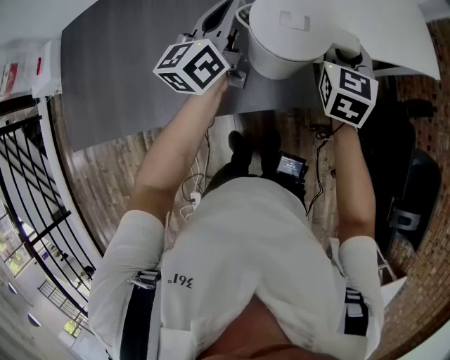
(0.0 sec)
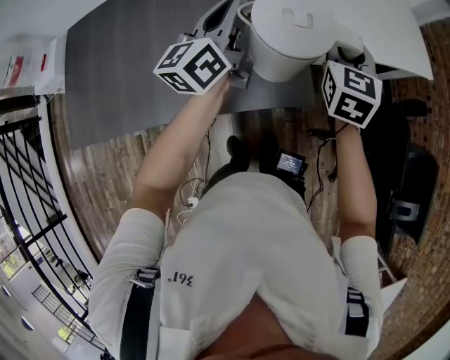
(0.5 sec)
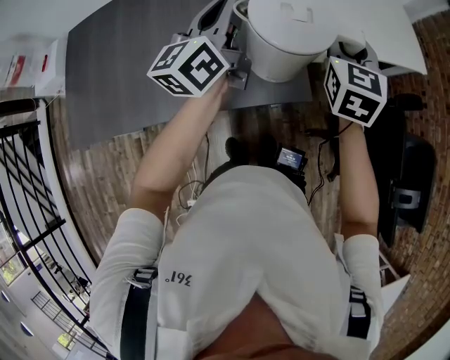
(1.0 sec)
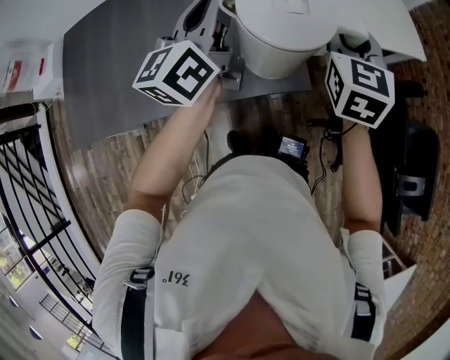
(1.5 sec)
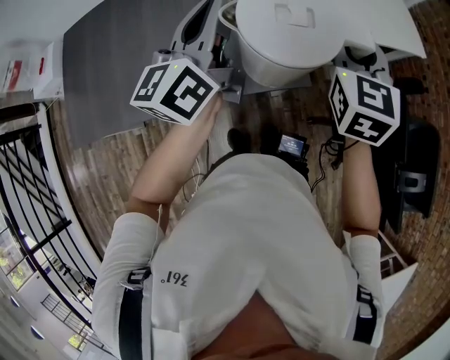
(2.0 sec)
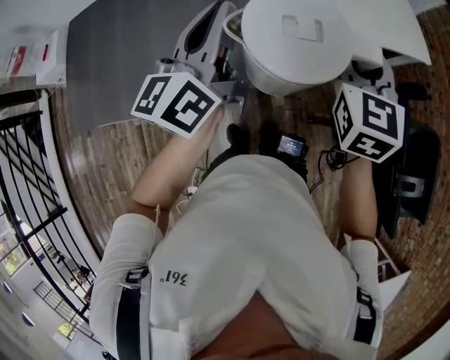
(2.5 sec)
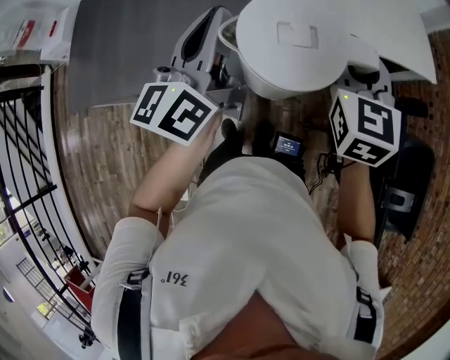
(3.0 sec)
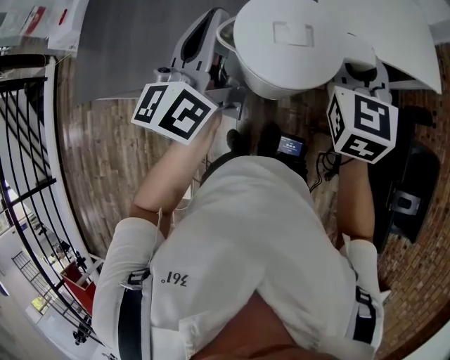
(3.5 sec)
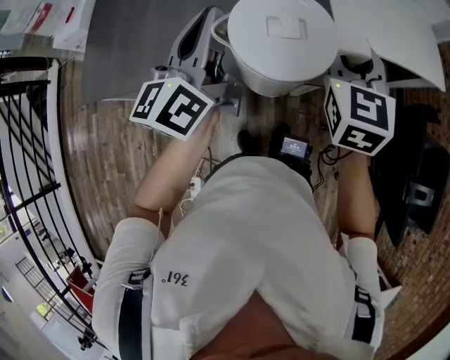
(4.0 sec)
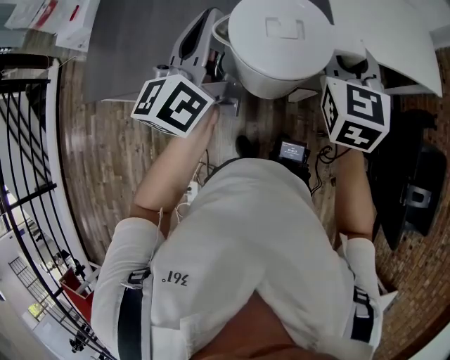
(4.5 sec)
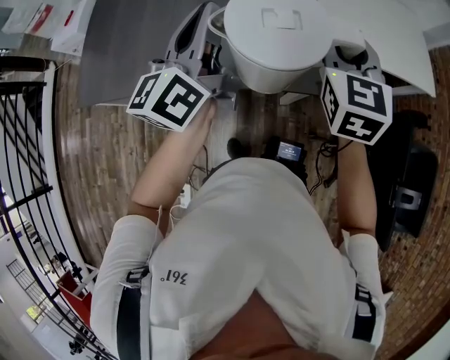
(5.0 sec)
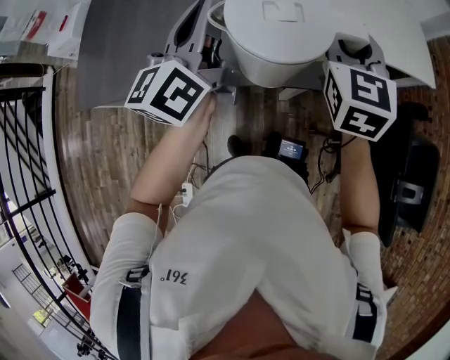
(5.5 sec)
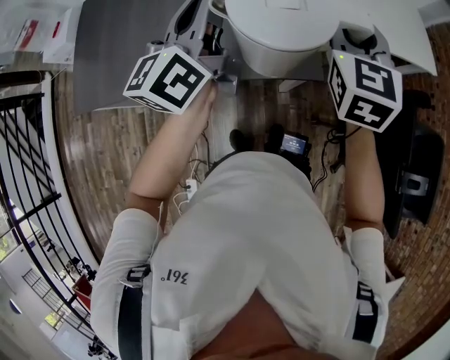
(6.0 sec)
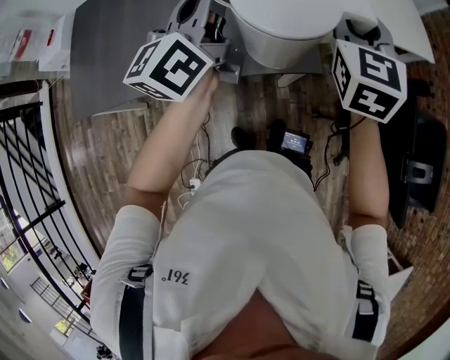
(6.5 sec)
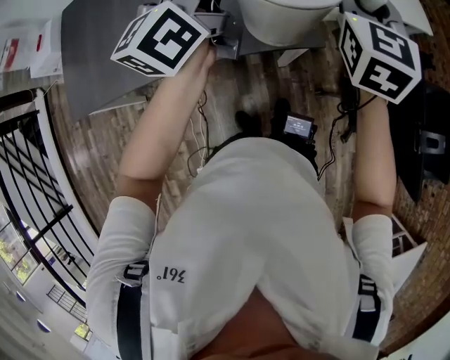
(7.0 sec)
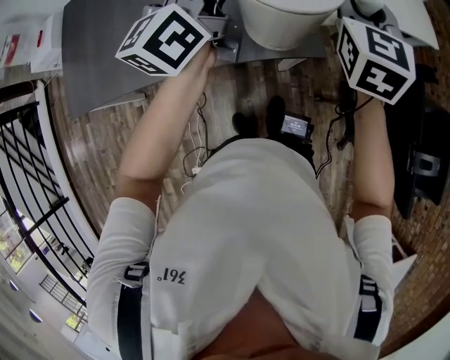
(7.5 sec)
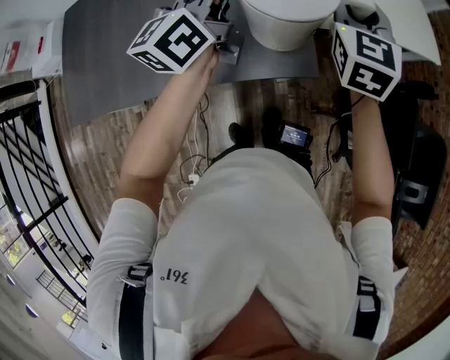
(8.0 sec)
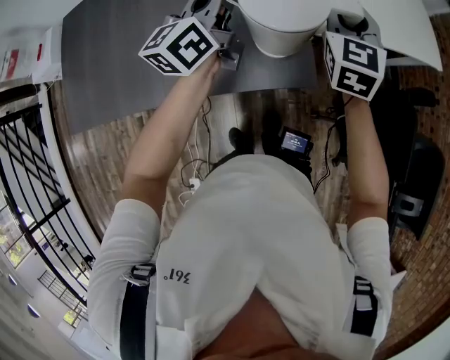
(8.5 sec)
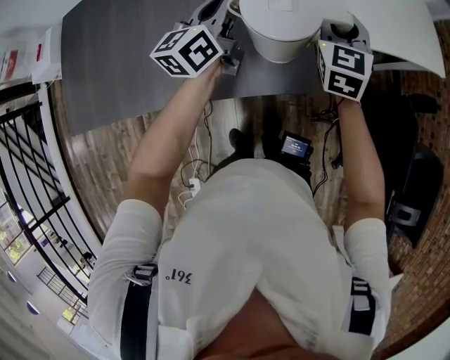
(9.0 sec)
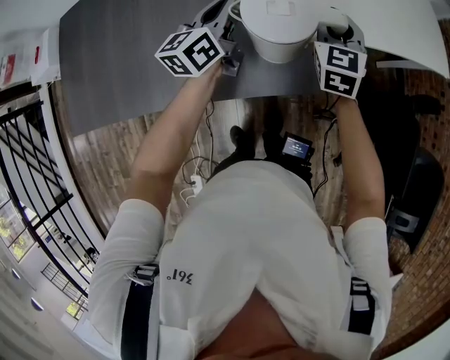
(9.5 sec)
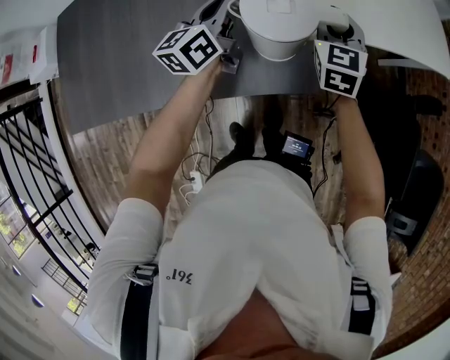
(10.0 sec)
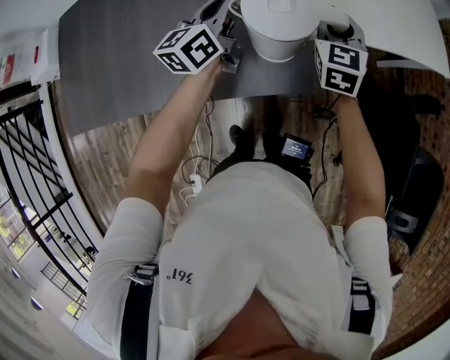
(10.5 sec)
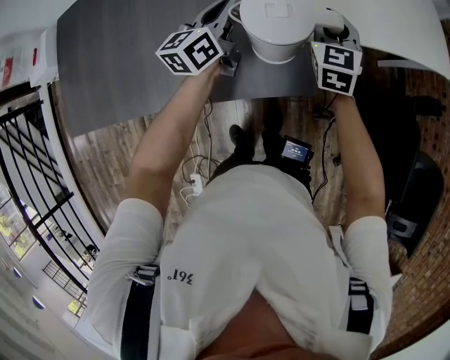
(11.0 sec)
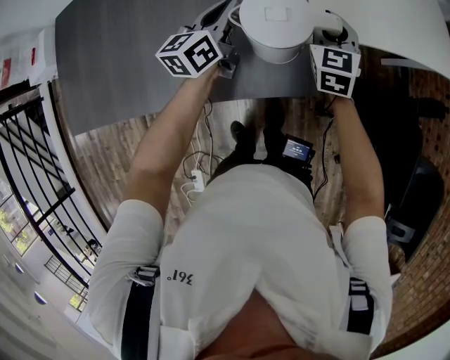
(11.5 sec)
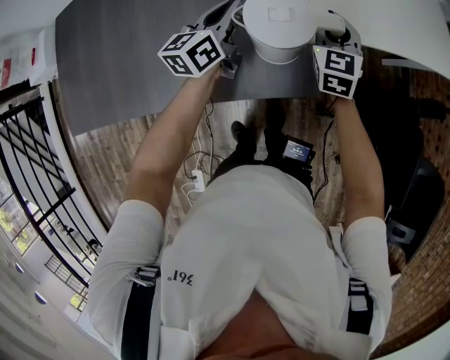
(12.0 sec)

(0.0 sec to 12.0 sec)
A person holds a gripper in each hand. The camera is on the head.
0.0 sec - 2.0 sec: The right gripper goes approximately 15 cm upward and backward. Meanwhile the left gripper moves backward and upward, some 15 cm.
2.0 sec - 4.0 sec: Both grippers move to the left and backward, about 15 cm.
4.0 sec - 6.0 sec: The two grippers go approximately 5 cm to the right.
6.0 sec - 8.0 sec: Both grippers travel together forward, some 10 cm.
8.0 sec - 10.0 sec: The two grippers go approximately 15 cm downward and forward.
10.0 sec - 12.0 sec: The grippers make only small movements.

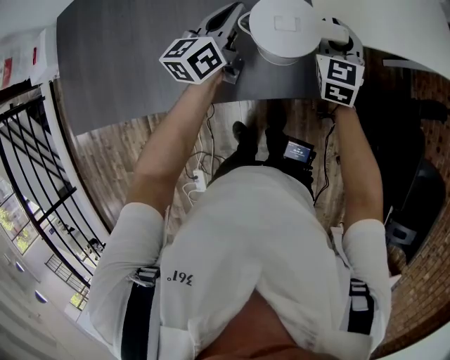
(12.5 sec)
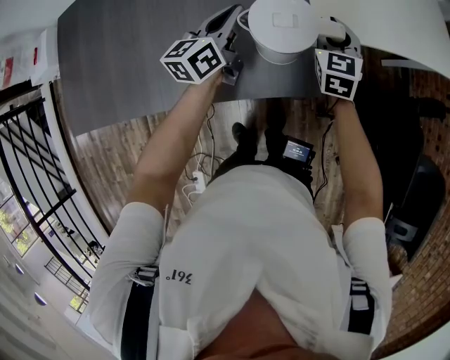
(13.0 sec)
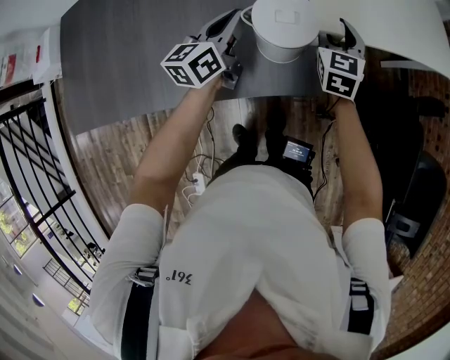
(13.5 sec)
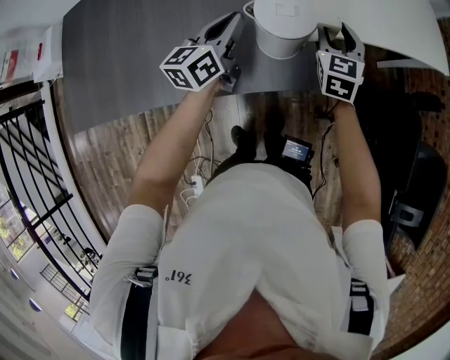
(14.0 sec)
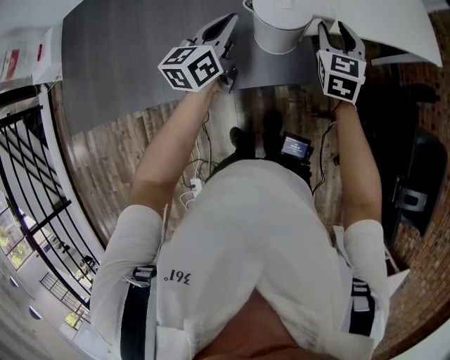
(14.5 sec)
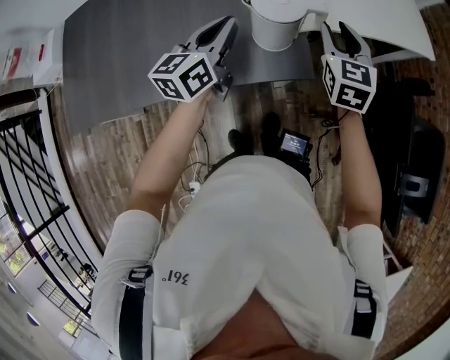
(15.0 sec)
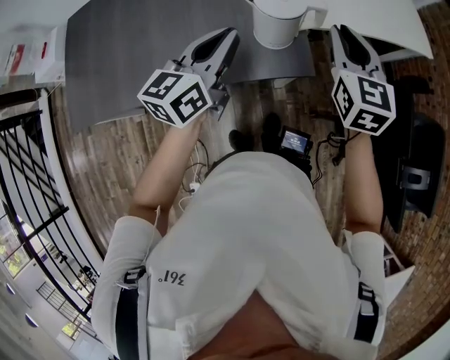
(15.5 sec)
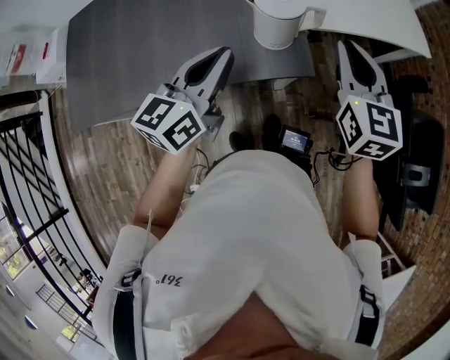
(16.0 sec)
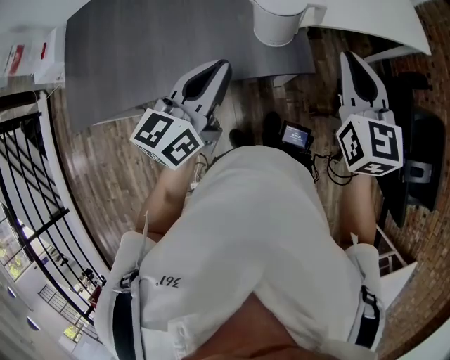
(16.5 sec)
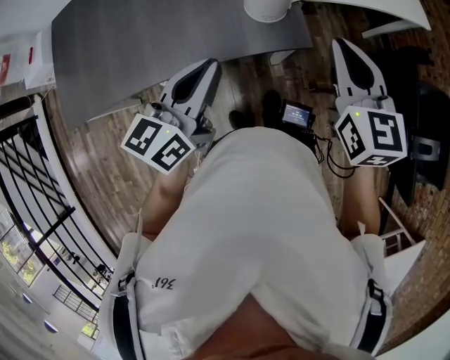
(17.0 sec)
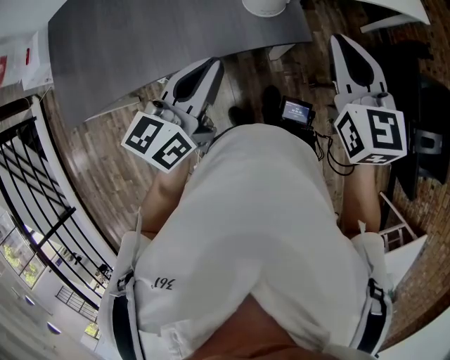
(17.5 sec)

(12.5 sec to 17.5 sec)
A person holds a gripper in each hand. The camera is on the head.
12.5 sec - 15.0 sec: The left gripper goes about 15 cm backward and upward; the right gripper shifts approximately 15 cm upward and backward.
15.0 sec - 17.5 sec: The grippers both shift backward by some 20 cm. The right gripper closes.

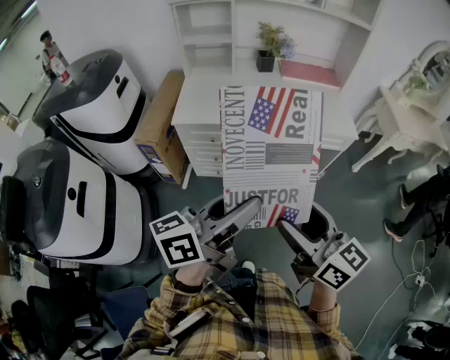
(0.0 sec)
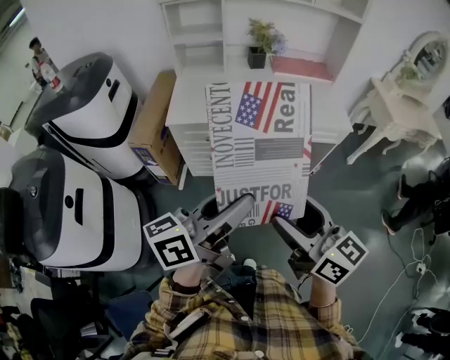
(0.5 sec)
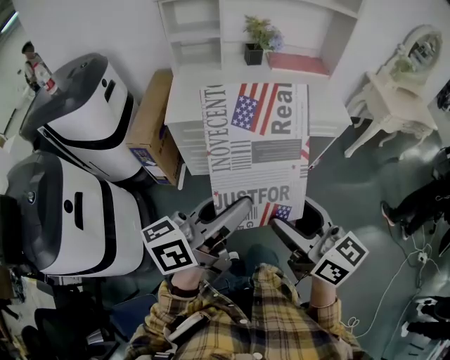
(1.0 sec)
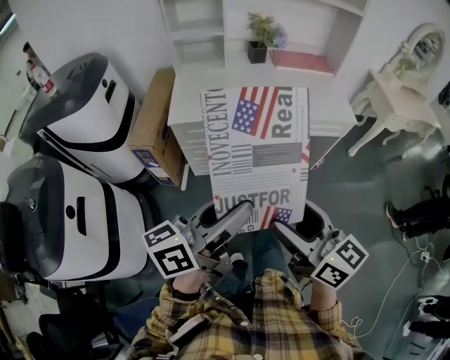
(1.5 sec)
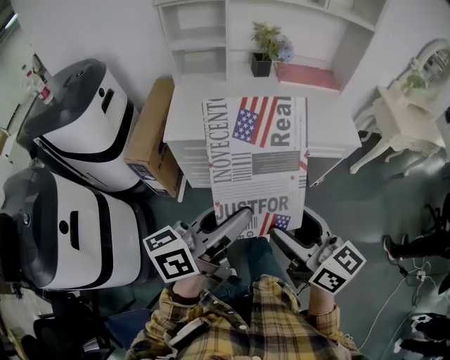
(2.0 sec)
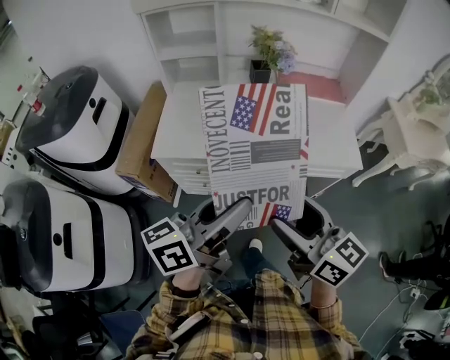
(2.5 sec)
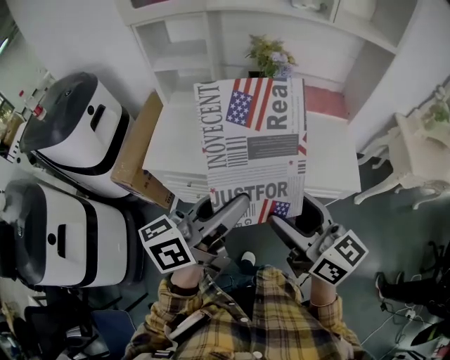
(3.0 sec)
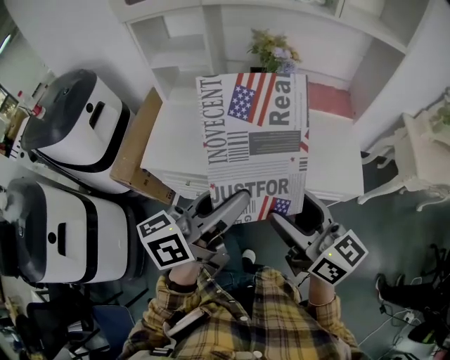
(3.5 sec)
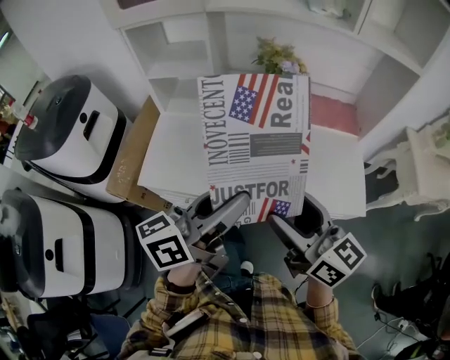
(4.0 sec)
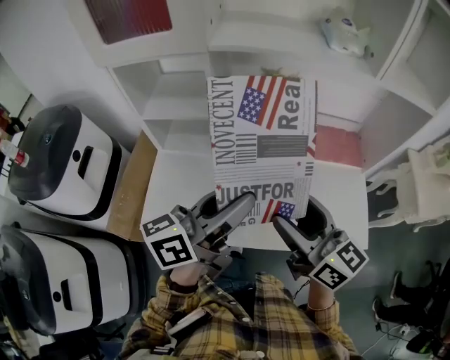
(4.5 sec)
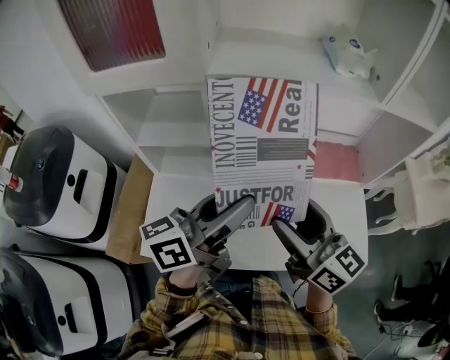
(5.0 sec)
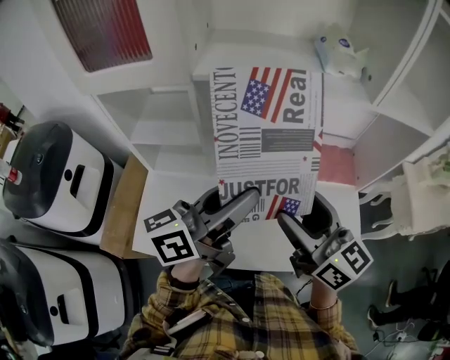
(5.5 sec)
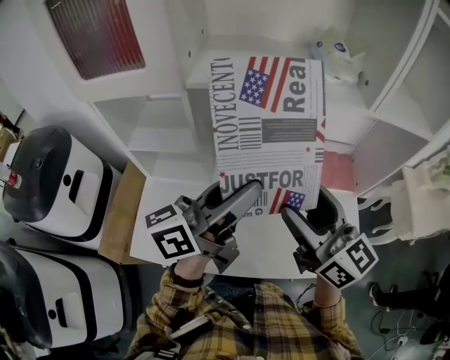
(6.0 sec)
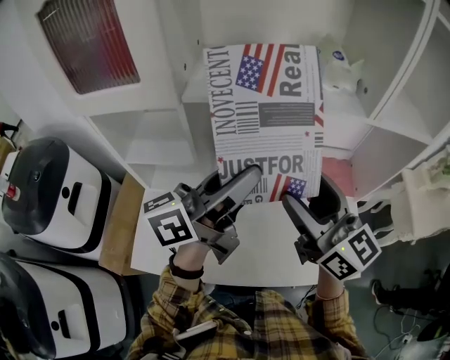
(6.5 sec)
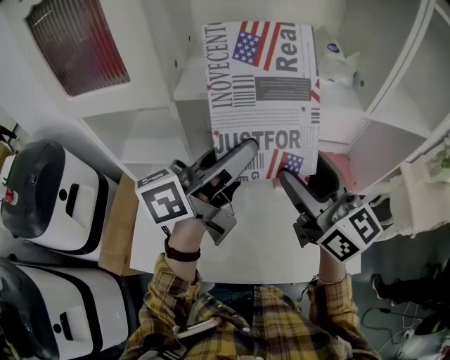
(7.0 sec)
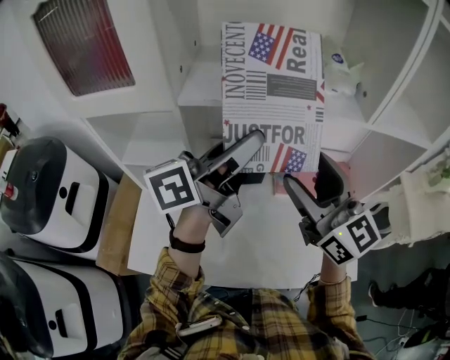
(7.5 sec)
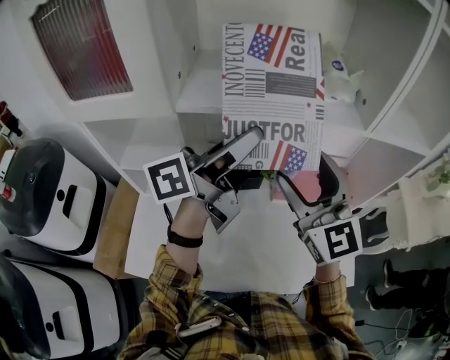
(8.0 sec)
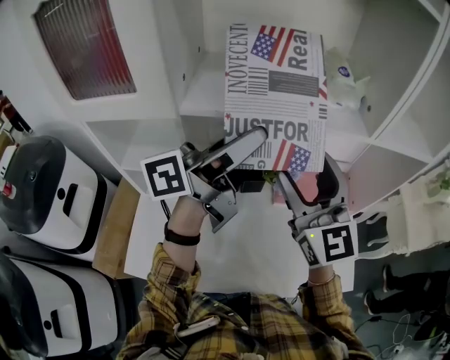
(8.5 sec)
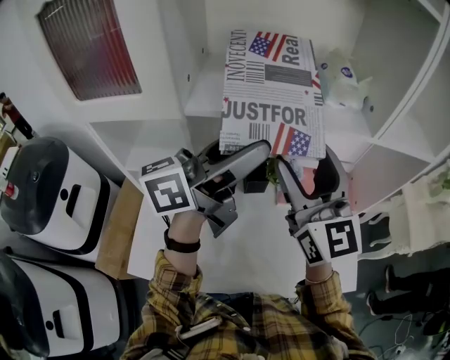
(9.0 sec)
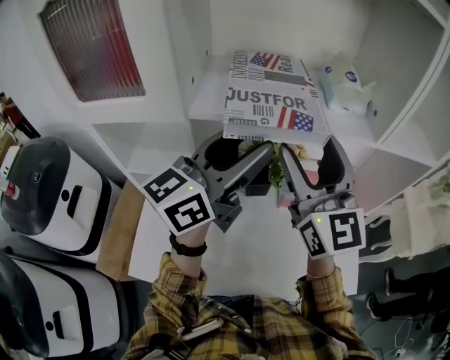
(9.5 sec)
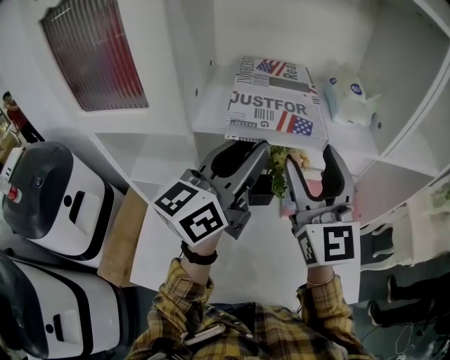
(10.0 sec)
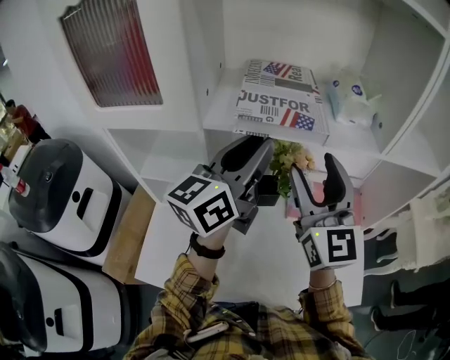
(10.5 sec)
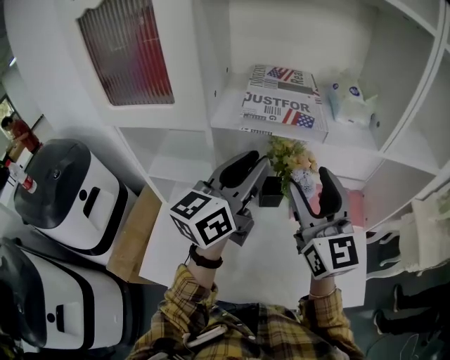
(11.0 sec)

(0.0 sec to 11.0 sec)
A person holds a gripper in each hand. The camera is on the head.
0.0 sec - 5.5 sec: There are only small adjustments of the grippers.
5.5 sec - 7.5 sec: The right gripper turns by about 20 degrees.
7.5 sec - 9.0 sec: The left gripper opens up.
9.0 sec - 11.0 sec: The left gripper shifts by roughly 5 cm, changes its angle by some 30 degrees, and closes.
